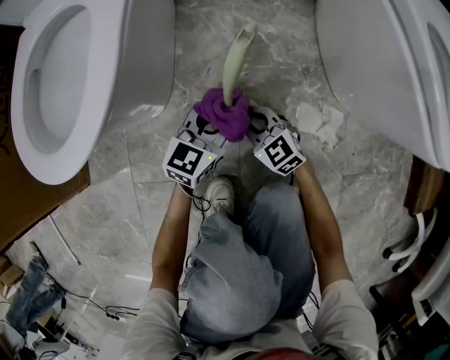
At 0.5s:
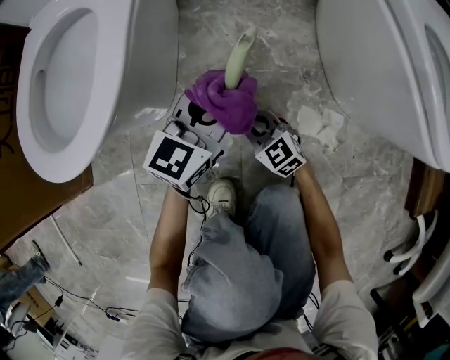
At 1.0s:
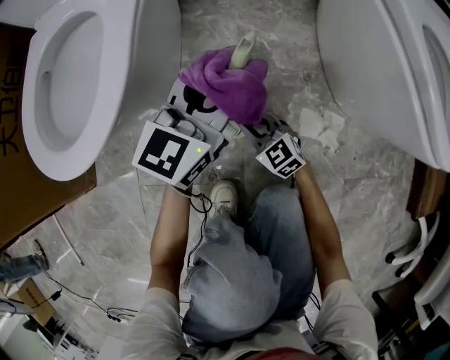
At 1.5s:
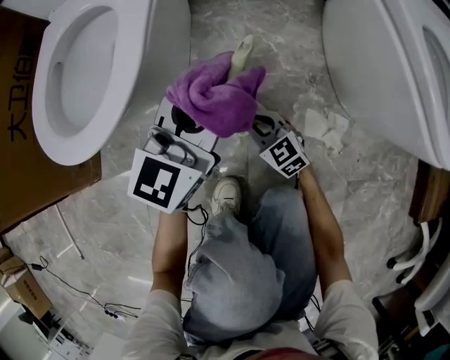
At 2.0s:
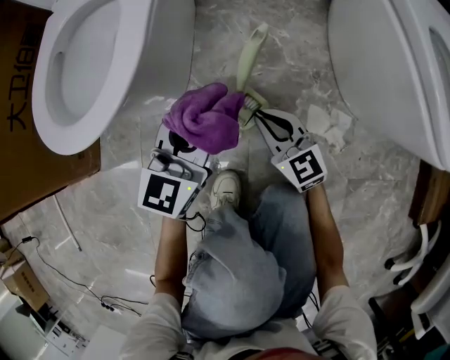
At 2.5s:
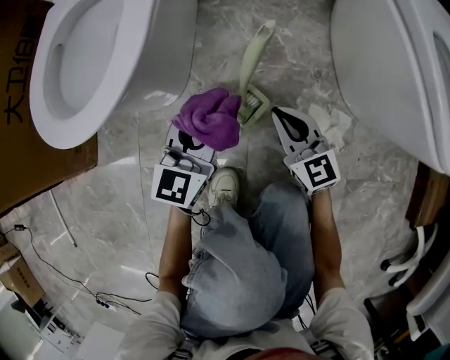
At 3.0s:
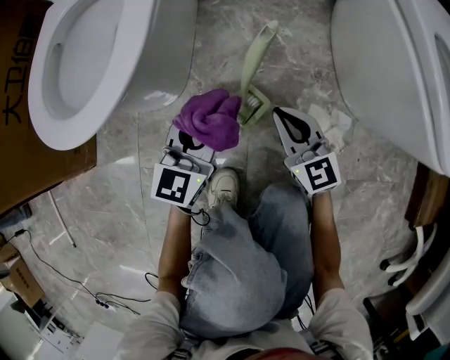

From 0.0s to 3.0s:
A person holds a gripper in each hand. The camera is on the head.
From 0.0s to 1.5s: The left gripper goes about 20 cm upward.
From 1.5s to 3.0s: The left gripper heads downward, covering about 10 cm; the right gripper shifts roughly 10 cm upward and to the right.

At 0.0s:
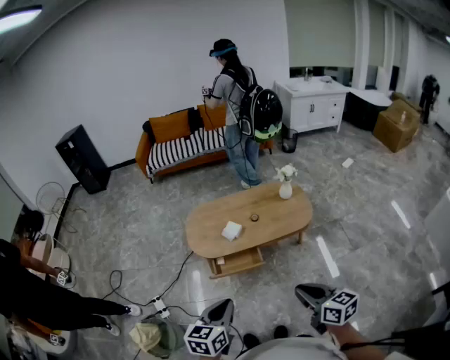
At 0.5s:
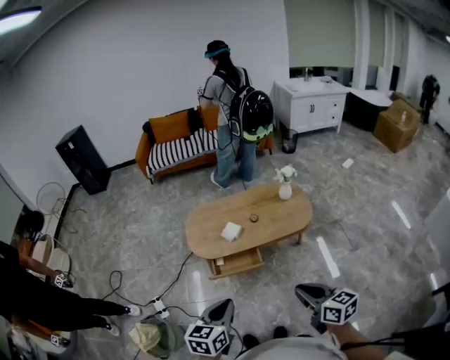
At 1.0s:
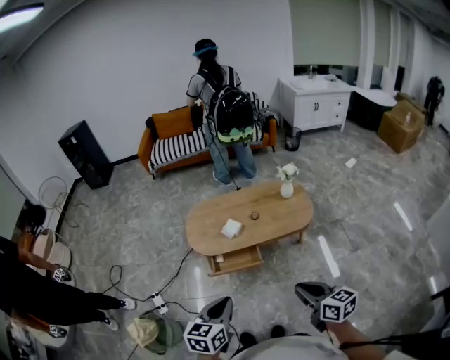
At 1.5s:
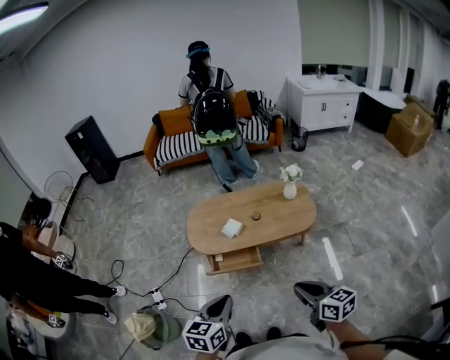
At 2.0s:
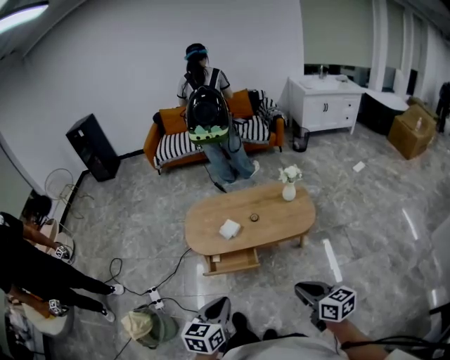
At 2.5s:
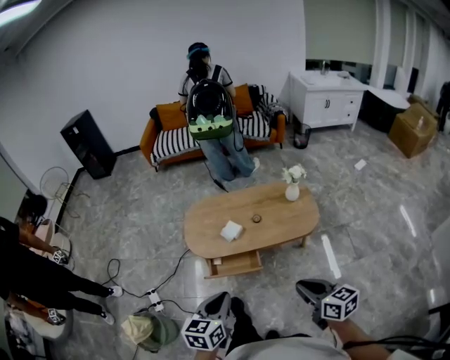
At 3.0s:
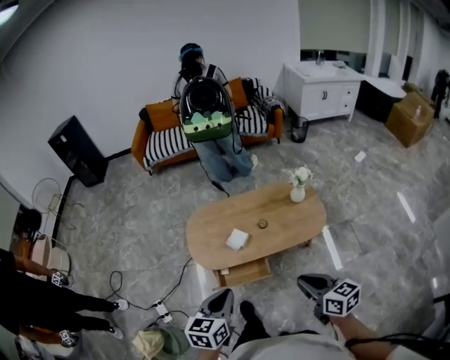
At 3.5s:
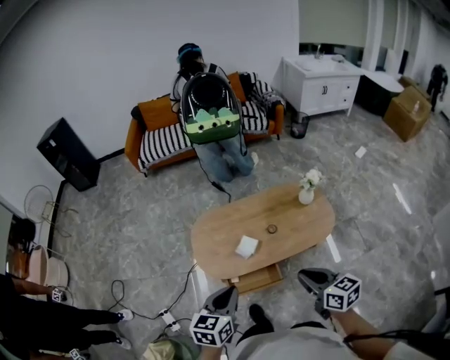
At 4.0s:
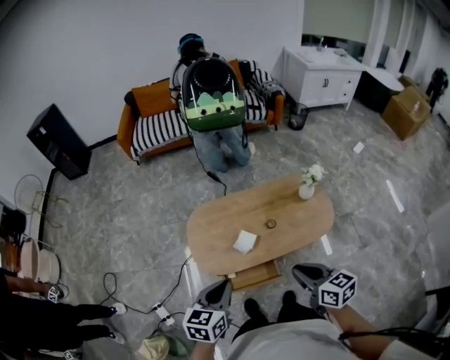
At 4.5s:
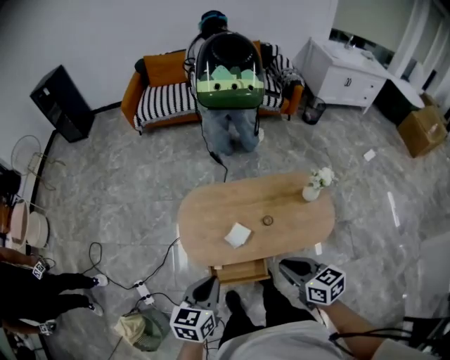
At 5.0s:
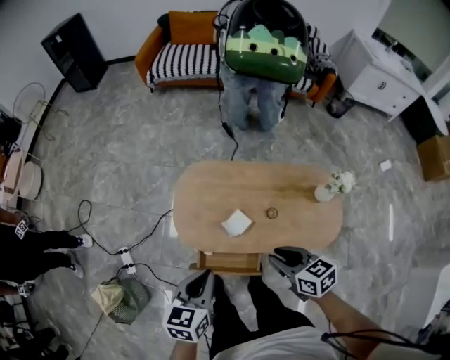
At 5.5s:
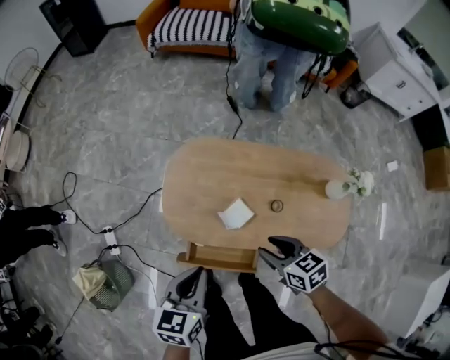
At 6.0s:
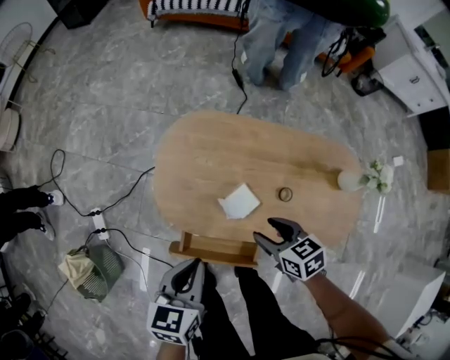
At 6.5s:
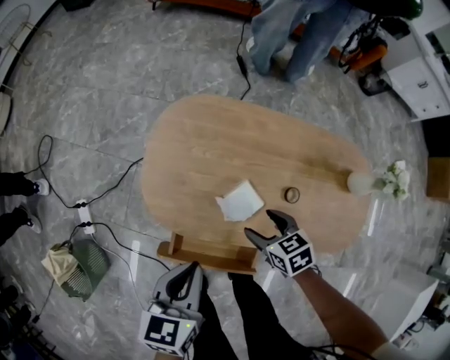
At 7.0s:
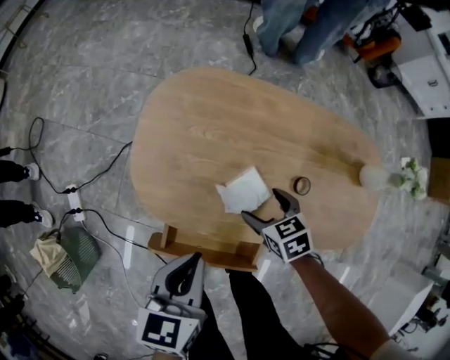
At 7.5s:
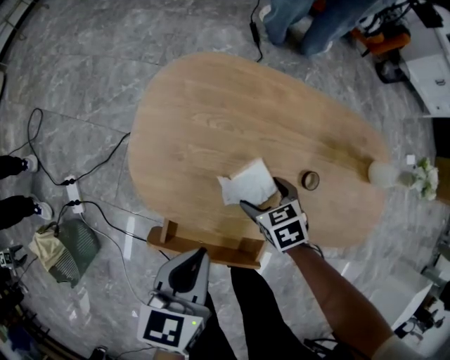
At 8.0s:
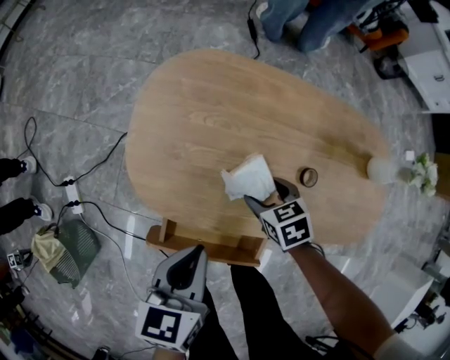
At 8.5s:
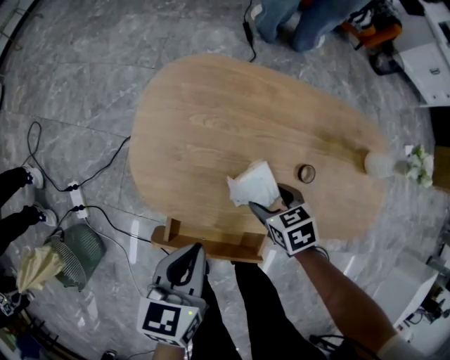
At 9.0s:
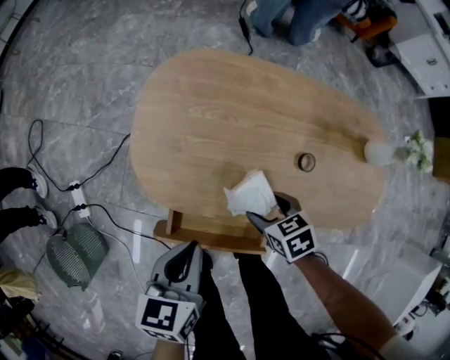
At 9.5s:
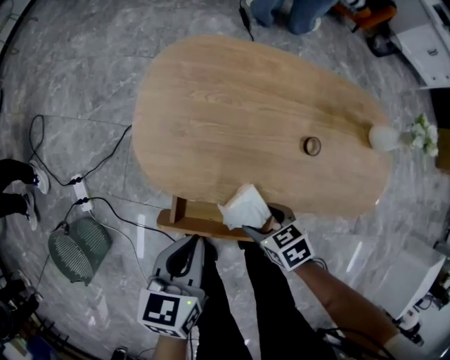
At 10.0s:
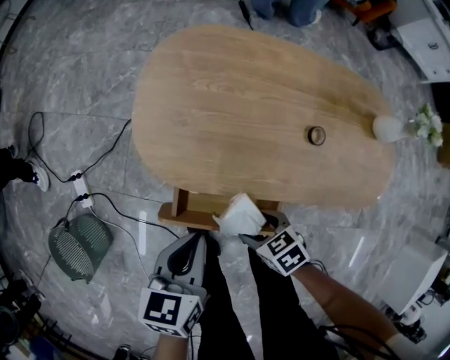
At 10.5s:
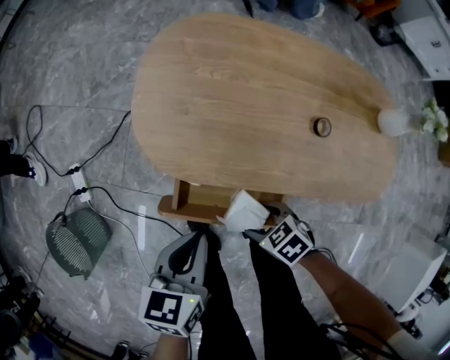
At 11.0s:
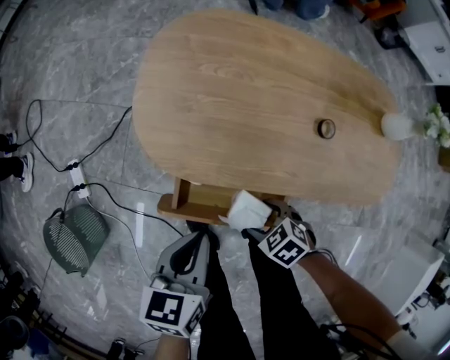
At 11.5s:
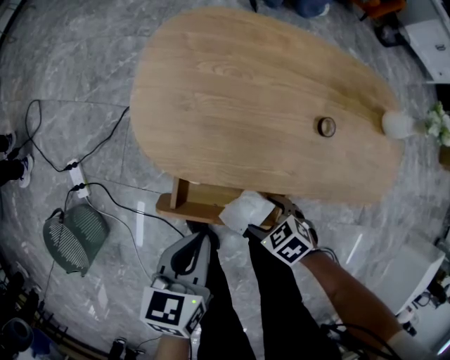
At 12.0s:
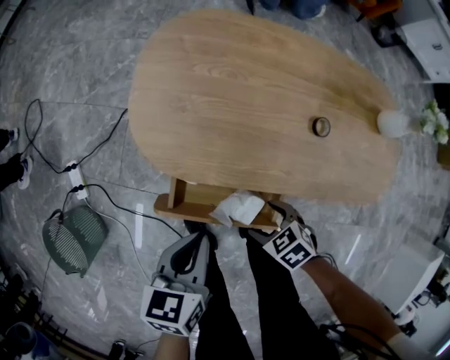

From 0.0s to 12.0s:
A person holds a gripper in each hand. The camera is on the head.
From 0.0s to 2.0s: Both grippers move to the right, about 5 cm.
From 2.0s to 4.0s: The left gripper shifts some 35 cm forward. Meanwhile the right gripper is displaced forward and to the left by some 35 cm.
From 4.0s to 6.0s: Both grippers move downward, some 30 cm. The right gripper turns by roughly 40 degrees, and opens up. The left gripper swivels roughly 30 degrees.
From 6.0s to 8.0s: The right gripper goes roughly 20 cm downward. The left gripper shifts roughly 15 cm downward.
From 8.0s to 10.0s: The right gripper goes some 20 cm backward and to the left. Meanwhile the left gripper moves backward, roughly 5 cm.

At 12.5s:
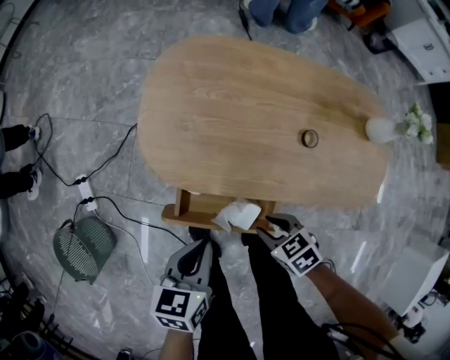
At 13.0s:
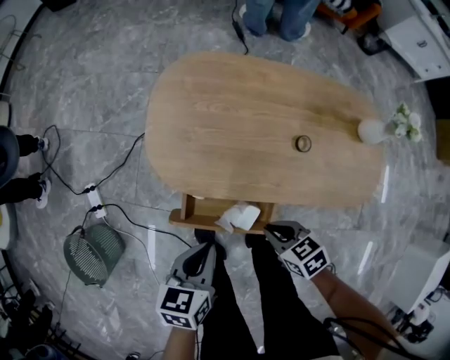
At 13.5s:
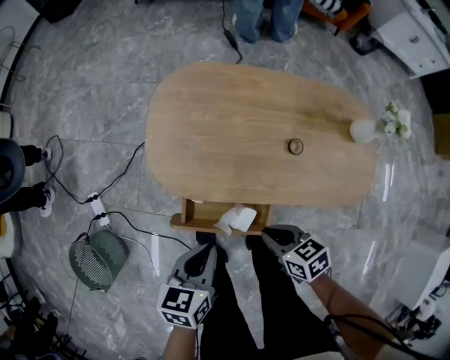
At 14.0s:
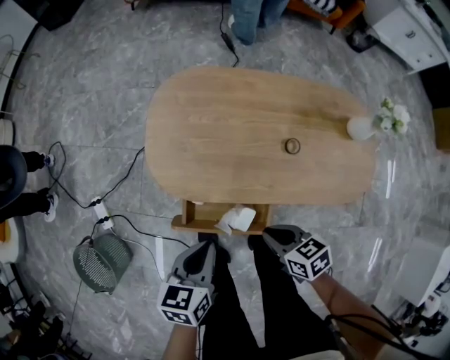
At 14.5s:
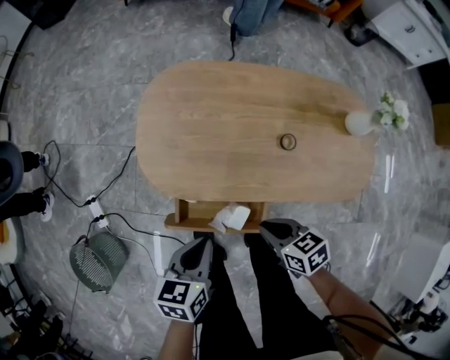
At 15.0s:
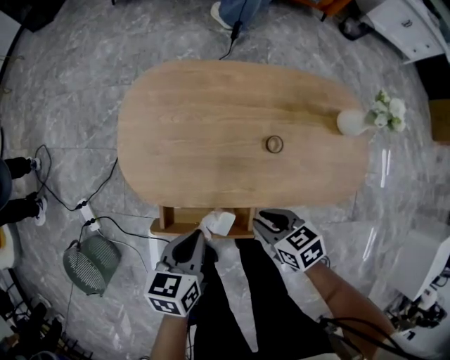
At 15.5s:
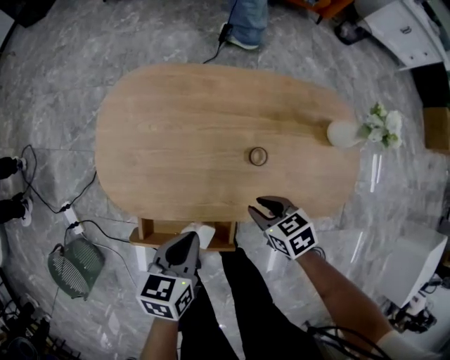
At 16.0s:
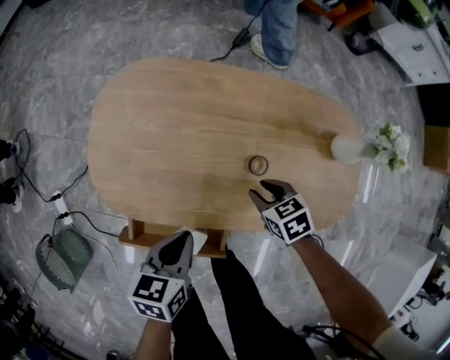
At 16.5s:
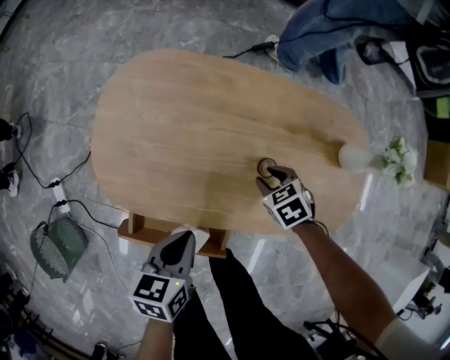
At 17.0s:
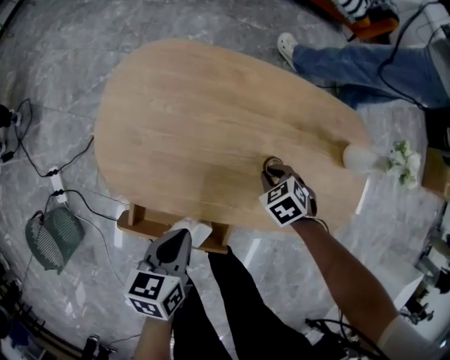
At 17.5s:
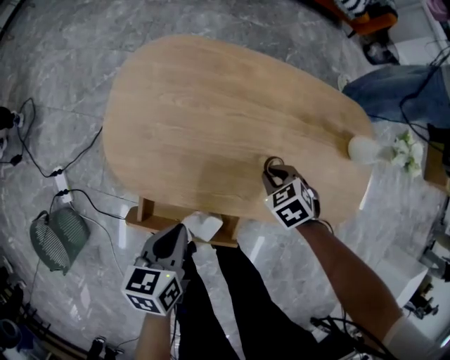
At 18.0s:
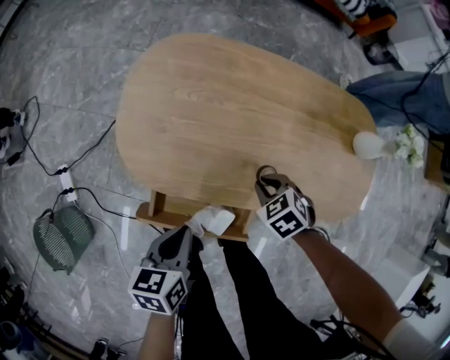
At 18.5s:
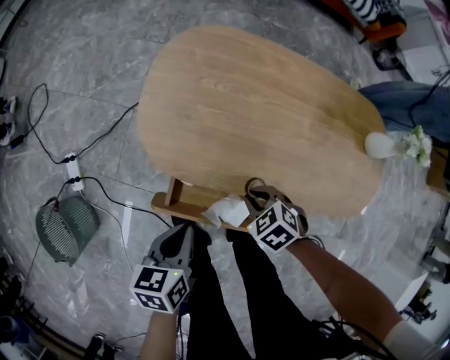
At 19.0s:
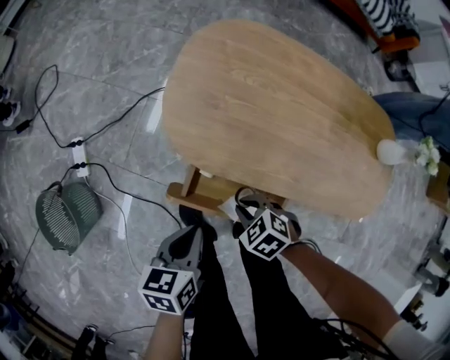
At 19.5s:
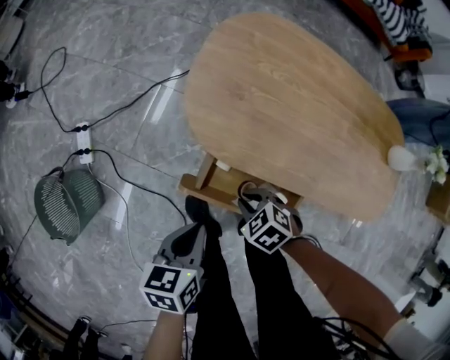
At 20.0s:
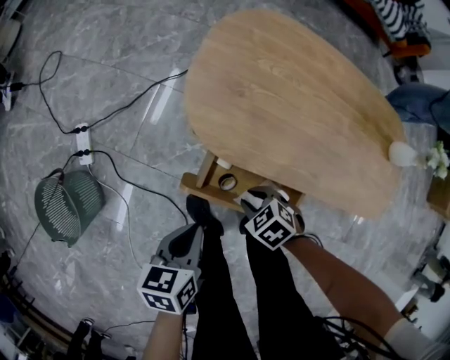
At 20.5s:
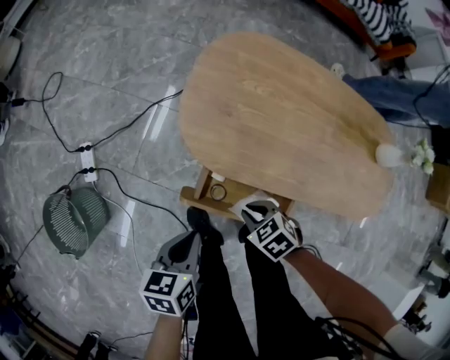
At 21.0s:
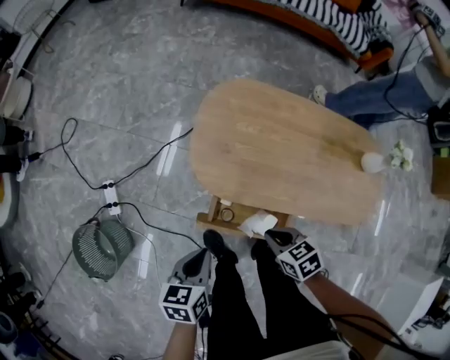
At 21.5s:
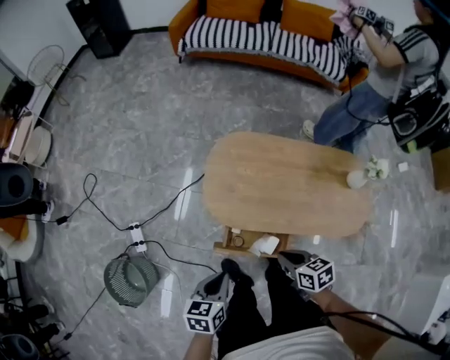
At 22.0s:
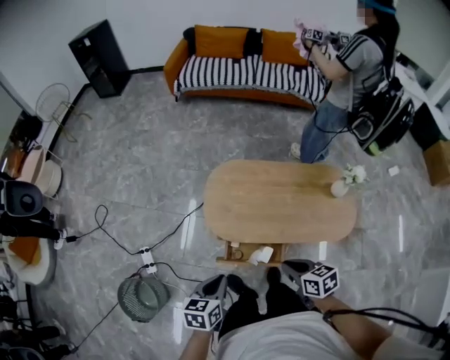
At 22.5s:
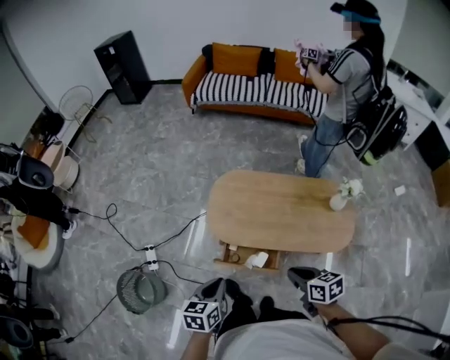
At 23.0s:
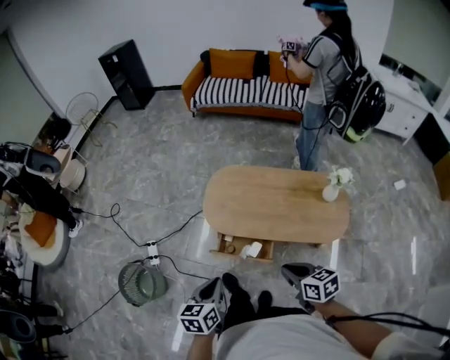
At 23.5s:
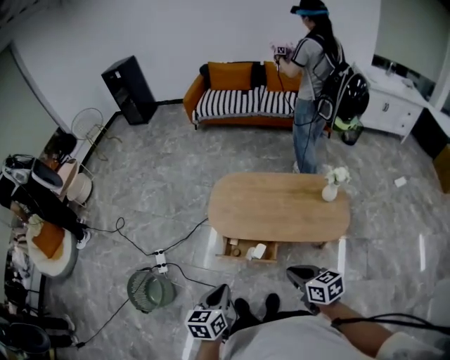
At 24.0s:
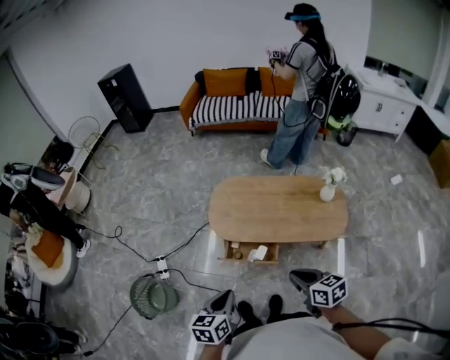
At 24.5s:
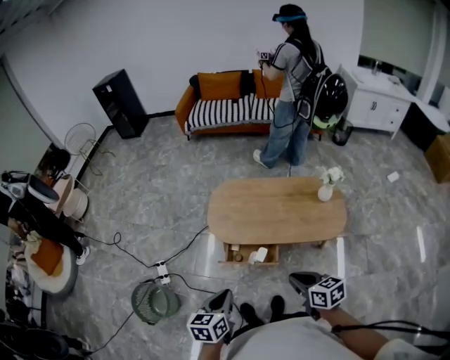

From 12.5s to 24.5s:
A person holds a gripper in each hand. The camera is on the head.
From 12.5s to 14.5s: The left gripper shifts by some 5 cm. The right gripper moves upward, some 10 cm, and swivels about 20 degrees.
From 14.5s to 16.5s: The left gripper travels to the right, forward and downward by about 15 cm. The right gripper is displaced forward, to the right and downward by roughly 30 cm, and rotates approximately 30 degrees.
From 16.5s to 18.5s: The left gripper shifts by about 15 cm, while the right gripper shifts by approximately 25 cm.
From 18.5s to 20.5s: Both grippers travel together to the left, approximately 10 cm.
From 20.5s to 22.5s: Both grippers move upward, roughly 35 cm. The right gripper changes its angle by about 50 degrees.
From 22.5s to 24.5s: The grippers both shift backward and upward by approximately 15 cm.
